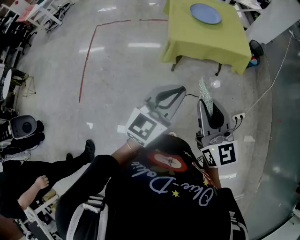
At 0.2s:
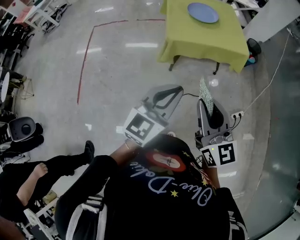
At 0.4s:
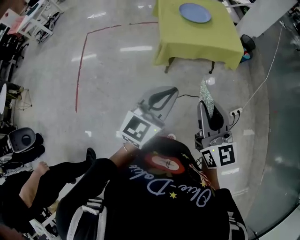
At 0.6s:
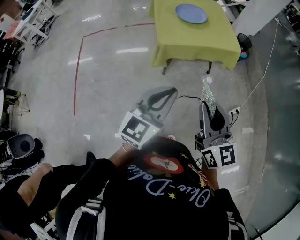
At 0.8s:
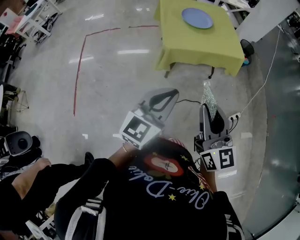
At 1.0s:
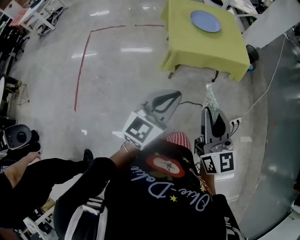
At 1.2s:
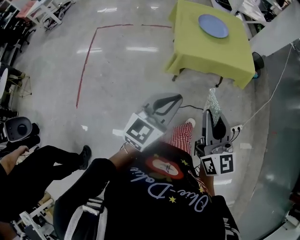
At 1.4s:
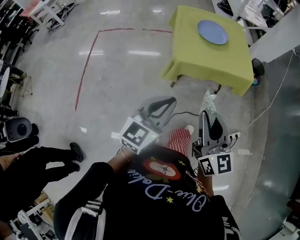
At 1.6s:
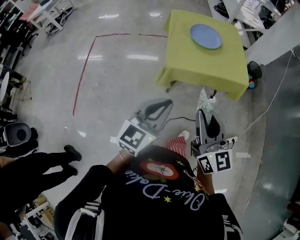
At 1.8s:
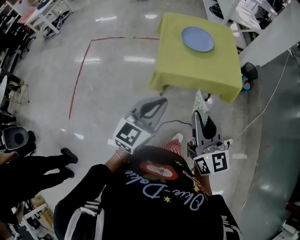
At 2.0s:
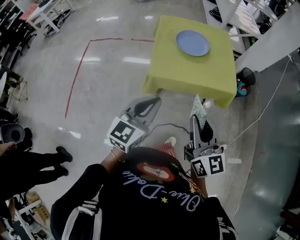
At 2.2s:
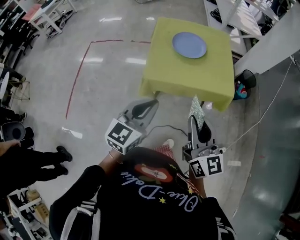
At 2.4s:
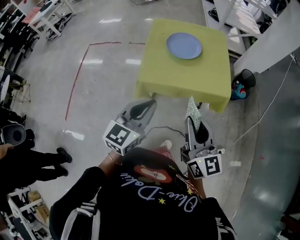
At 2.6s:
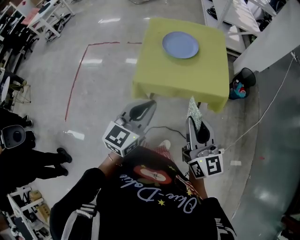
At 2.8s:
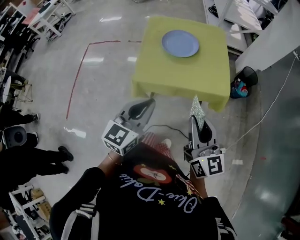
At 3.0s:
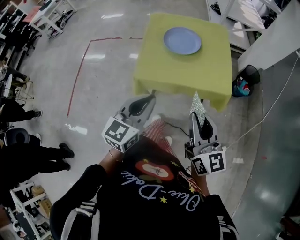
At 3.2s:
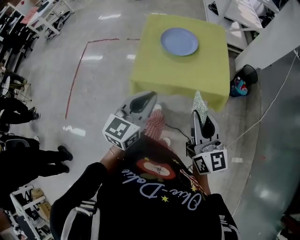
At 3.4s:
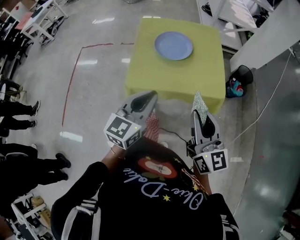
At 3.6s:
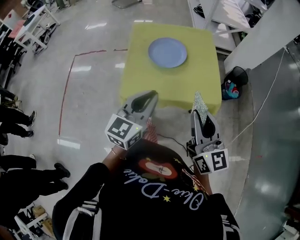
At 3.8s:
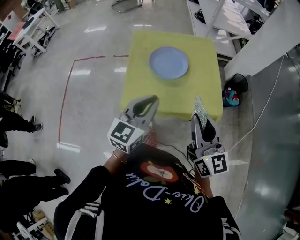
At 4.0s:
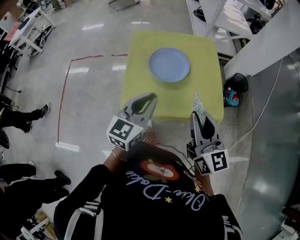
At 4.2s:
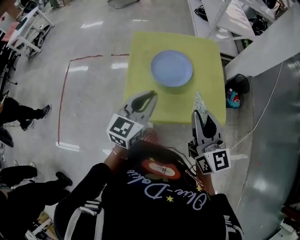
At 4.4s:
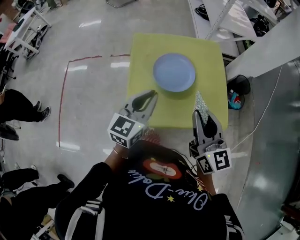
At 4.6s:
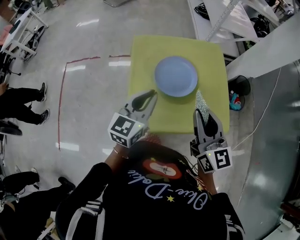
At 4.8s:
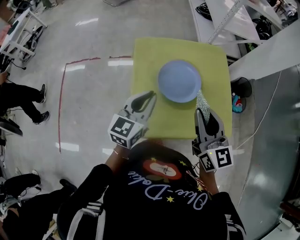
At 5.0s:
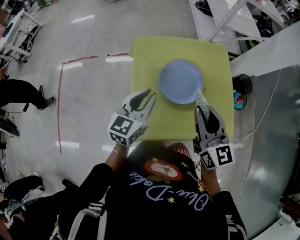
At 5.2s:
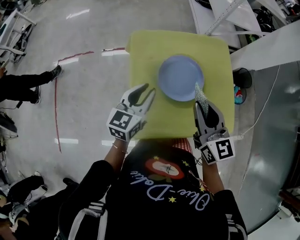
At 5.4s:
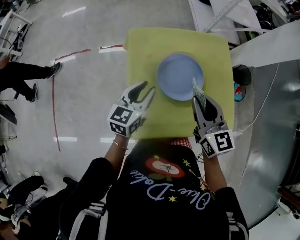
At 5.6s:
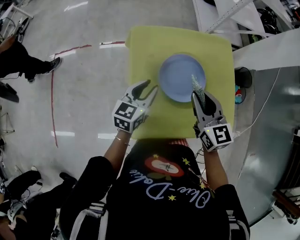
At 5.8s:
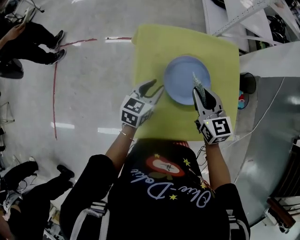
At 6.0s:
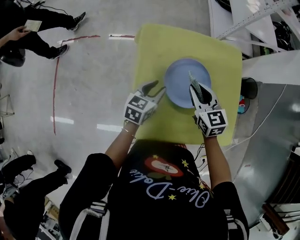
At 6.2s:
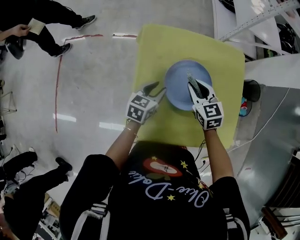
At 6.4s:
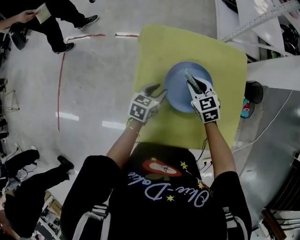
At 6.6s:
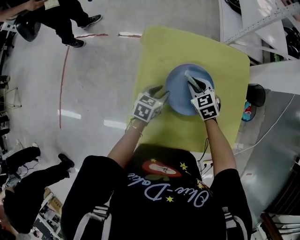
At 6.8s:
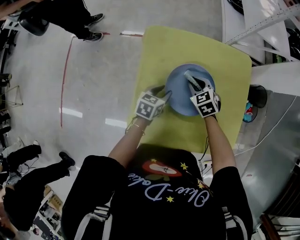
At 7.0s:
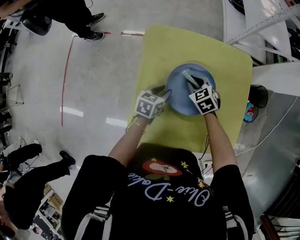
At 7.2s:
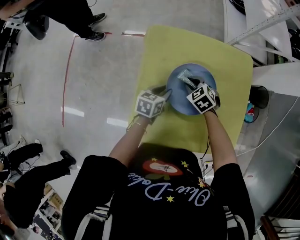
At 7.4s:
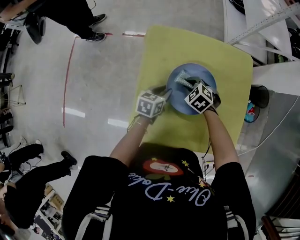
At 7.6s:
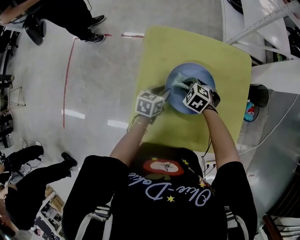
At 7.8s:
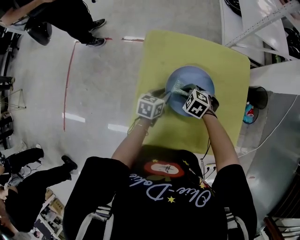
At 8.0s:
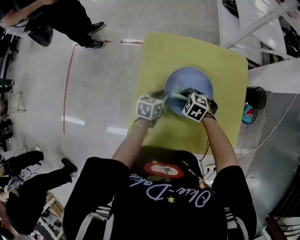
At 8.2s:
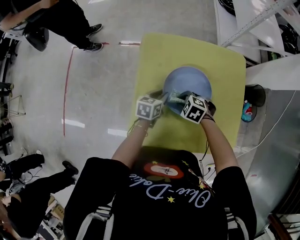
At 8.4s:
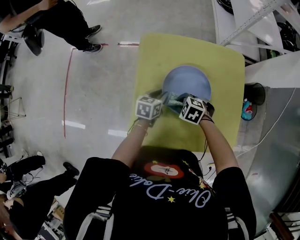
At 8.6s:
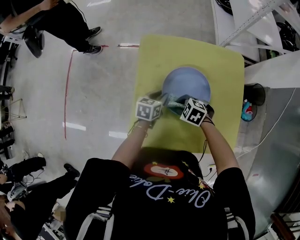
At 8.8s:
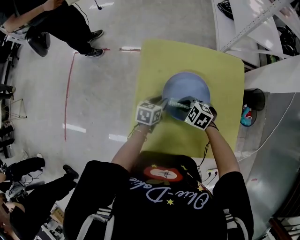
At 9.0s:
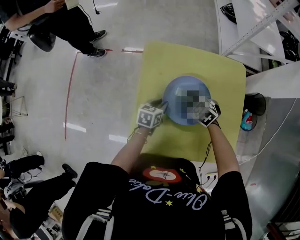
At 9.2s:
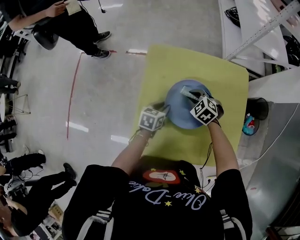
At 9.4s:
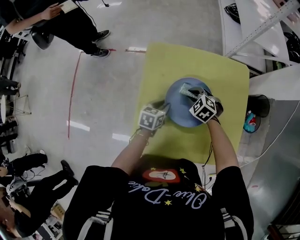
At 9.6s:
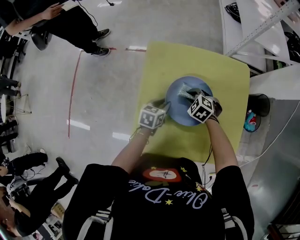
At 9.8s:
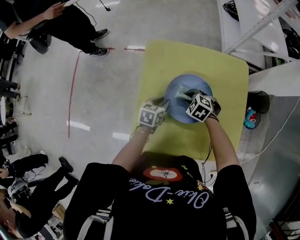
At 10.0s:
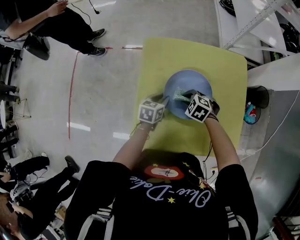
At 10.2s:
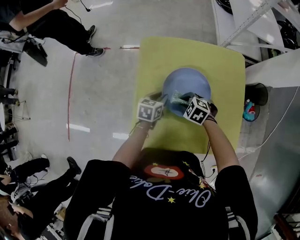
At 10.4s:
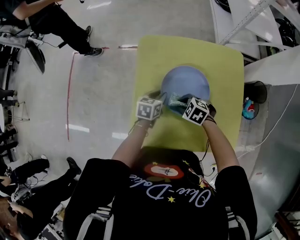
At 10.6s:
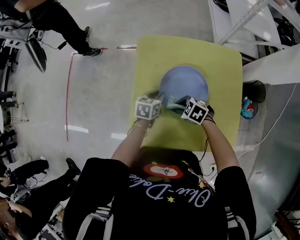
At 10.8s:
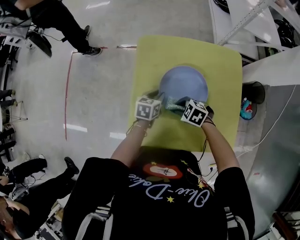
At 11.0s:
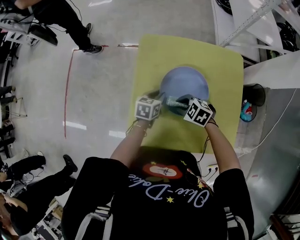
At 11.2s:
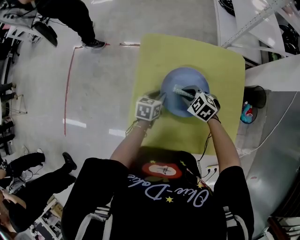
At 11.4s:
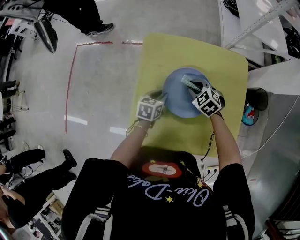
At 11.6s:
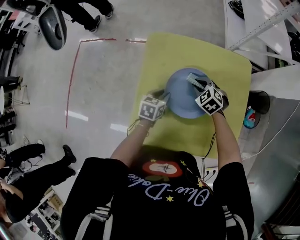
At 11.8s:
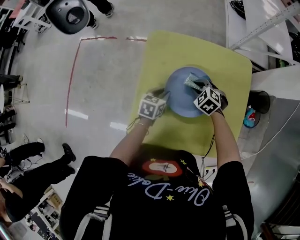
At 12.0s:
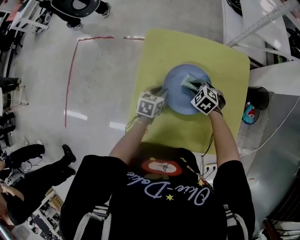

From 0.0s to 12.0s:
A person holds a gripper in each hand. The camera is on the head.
From 0.0s to 1.6s: Both grippers travel together forward, roughly 15 cm.
From 1.6s to 3.0s: Both grippers travel together to the right and forward, about 20 cm.
From 3.0s to 4.4s: The grippers both shift forward by approximately 25 cm.
From 4.4s to 6.0s: The two grippers go about 30 cm forward and downward. The right gripper rotates about 30 degrees. The left gripper swivels about 20 degrees, and opens up.
From 6.0s to 7.6s: The left gripper moves downward, approximately 10 cm, while the right gripper moves downward, about 15 cm, and tips its fingers downward by approximately 40 degrees.
From 9.0s to 10.4s: The right gripper shifts roughly 10 cm backward.
From 10.4s to 12.0s: The right gripper ends up about 10 cm from where it was.

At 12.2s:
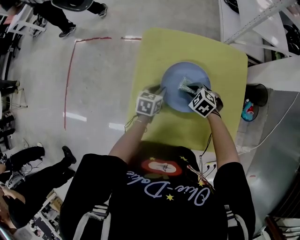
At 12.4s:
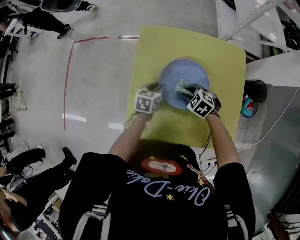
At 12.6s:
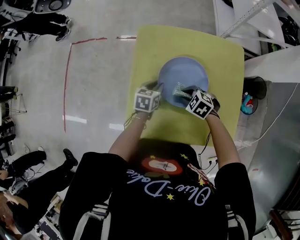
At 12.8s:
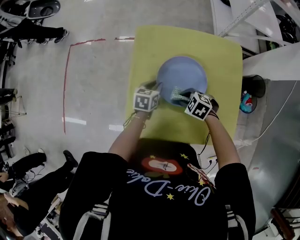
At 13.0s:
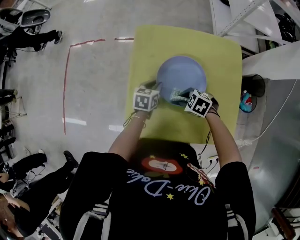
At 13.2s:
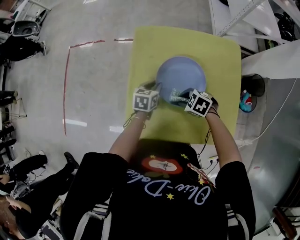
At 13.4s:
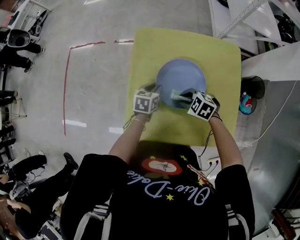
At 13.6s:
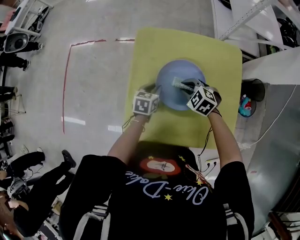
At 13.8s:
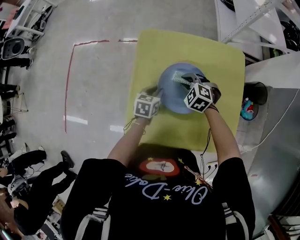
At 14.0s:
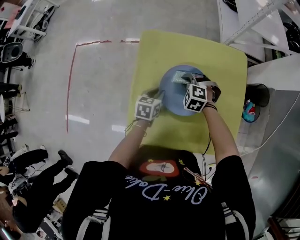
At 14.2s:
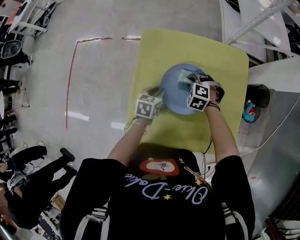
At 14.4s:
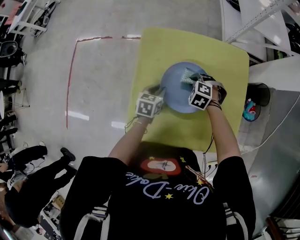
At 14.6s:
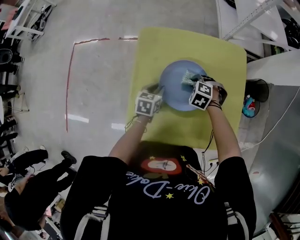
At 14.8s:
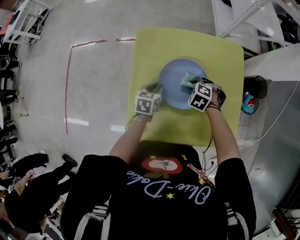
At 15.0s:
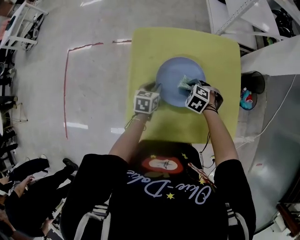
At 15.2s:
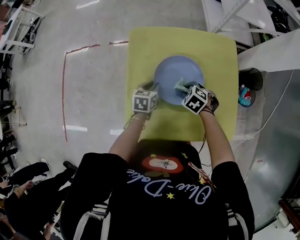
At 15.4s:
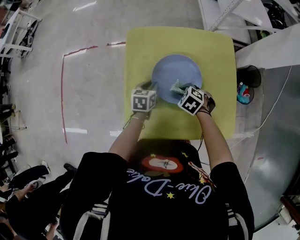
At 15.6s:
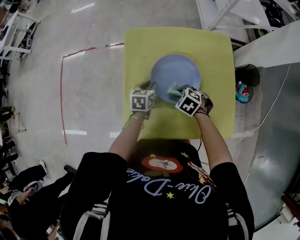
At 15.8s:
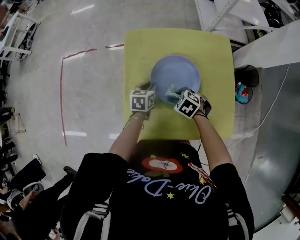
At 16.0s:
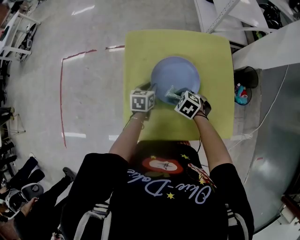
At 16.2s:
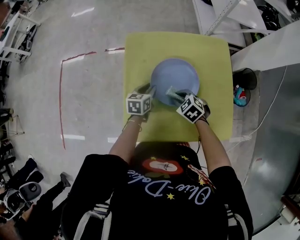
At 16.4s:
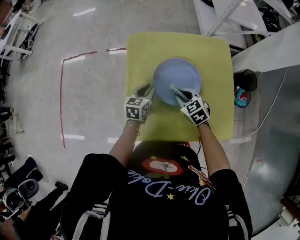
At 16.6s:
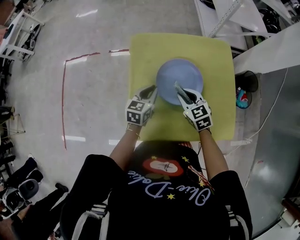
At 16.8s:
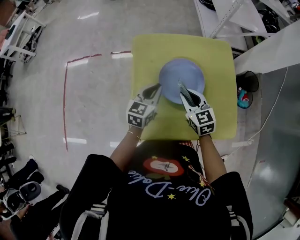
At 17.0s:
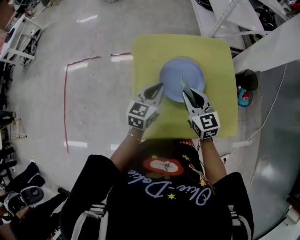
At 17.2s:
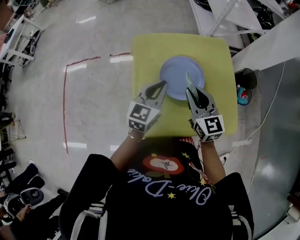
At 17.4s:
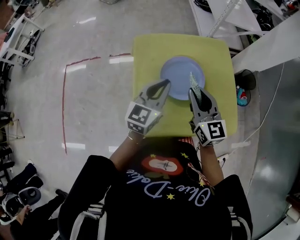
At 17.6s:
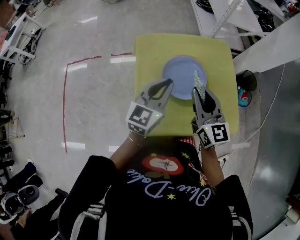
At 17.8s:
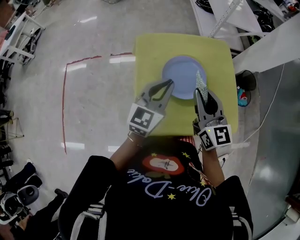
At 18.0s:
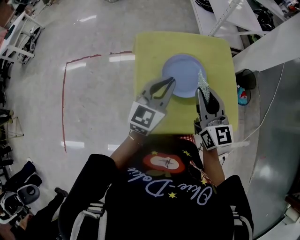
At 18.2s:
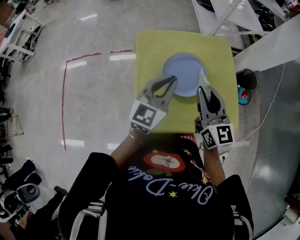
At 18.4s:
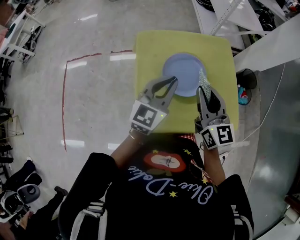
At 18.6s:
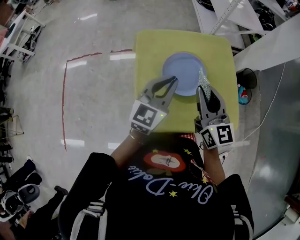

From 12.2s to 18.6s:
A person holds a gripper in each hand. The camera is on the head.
From 12.2s to 13.8s: The right gripper ends up approximately 5 cm from where it was.
From 13.8s to 15.4s: The right gripper shifts by approximately 10 cm, and rotates roughly 30 degrees.
From 15.4s to 17.0s: The grippers both shift upward by roughly 15 cm. The right gripper points its fingers approximately 50 degrees further upward, while the left gripper changes its angle by some 30 degrees.
From 17.0s to 18.6s: Both grippers travel together upward, approximately 10 cm. The right gripper rotates roughly 20 degrees.

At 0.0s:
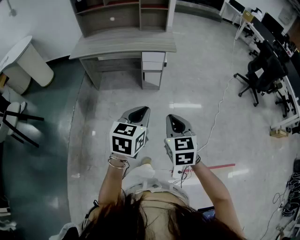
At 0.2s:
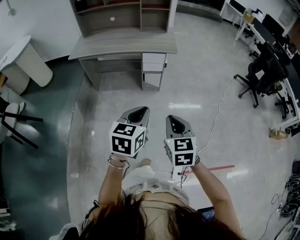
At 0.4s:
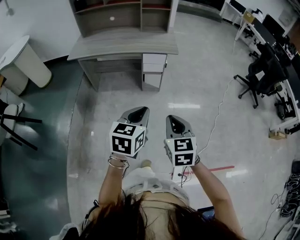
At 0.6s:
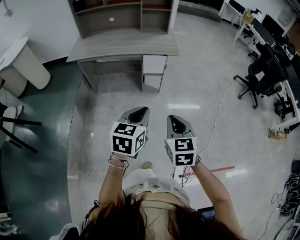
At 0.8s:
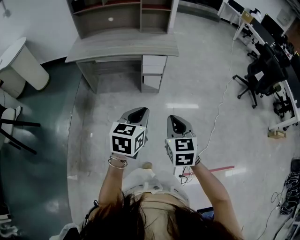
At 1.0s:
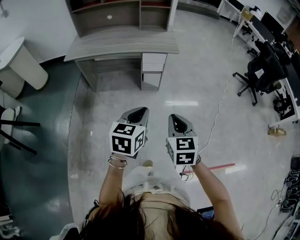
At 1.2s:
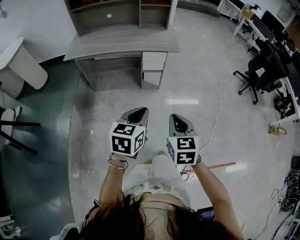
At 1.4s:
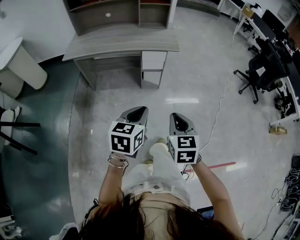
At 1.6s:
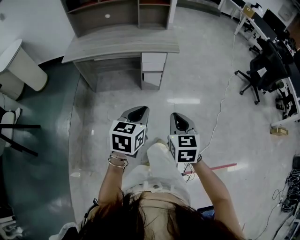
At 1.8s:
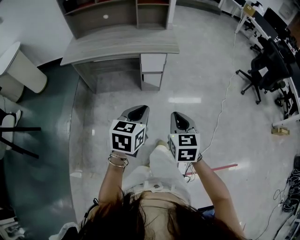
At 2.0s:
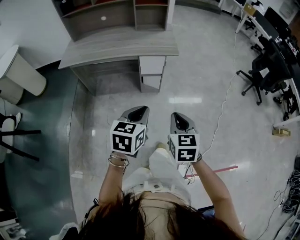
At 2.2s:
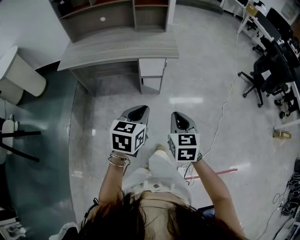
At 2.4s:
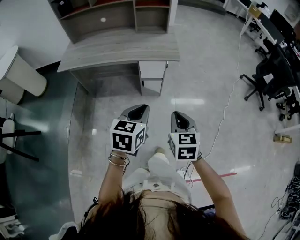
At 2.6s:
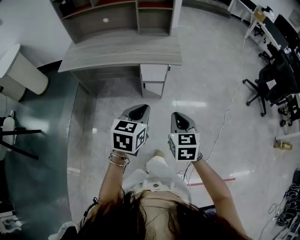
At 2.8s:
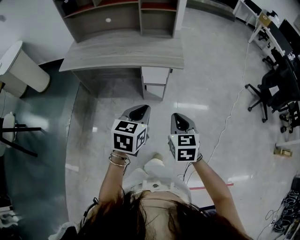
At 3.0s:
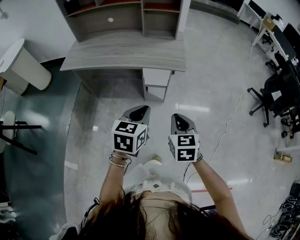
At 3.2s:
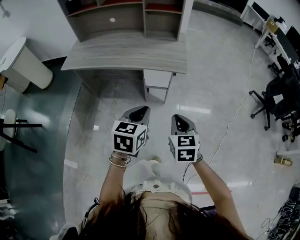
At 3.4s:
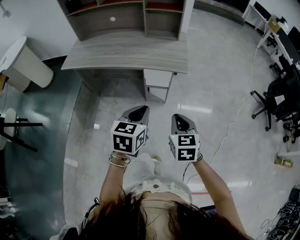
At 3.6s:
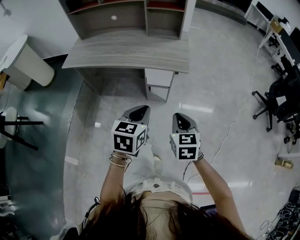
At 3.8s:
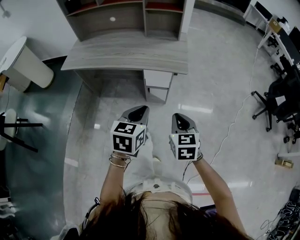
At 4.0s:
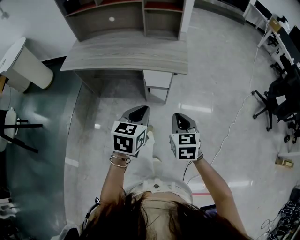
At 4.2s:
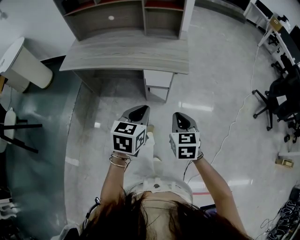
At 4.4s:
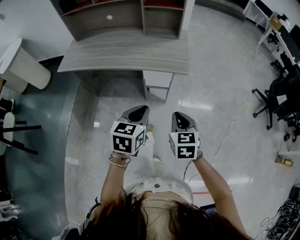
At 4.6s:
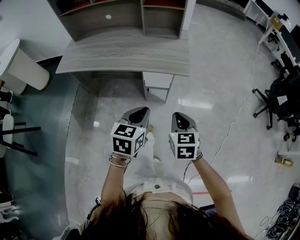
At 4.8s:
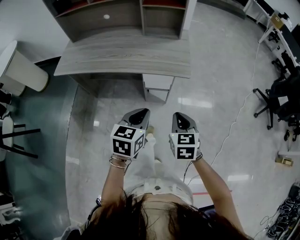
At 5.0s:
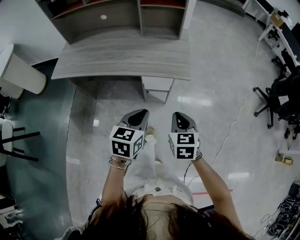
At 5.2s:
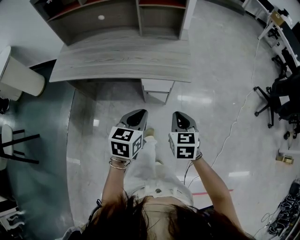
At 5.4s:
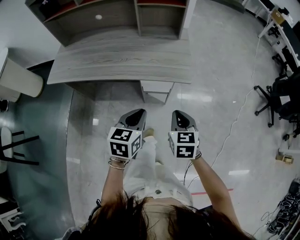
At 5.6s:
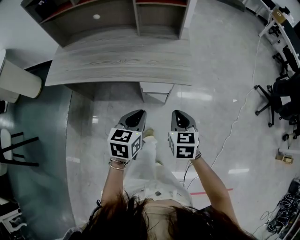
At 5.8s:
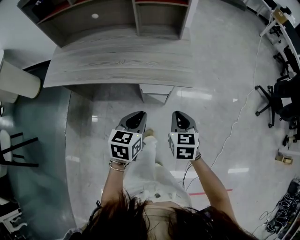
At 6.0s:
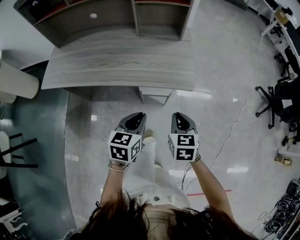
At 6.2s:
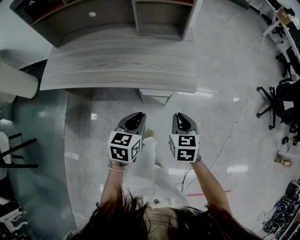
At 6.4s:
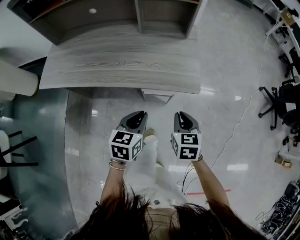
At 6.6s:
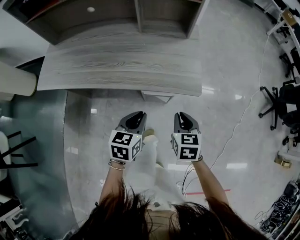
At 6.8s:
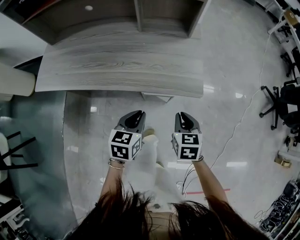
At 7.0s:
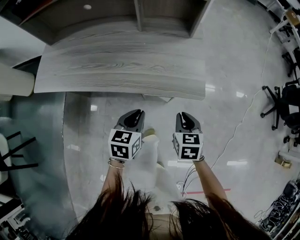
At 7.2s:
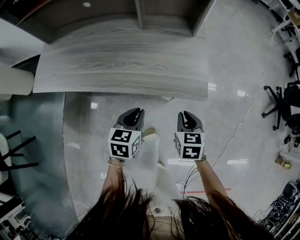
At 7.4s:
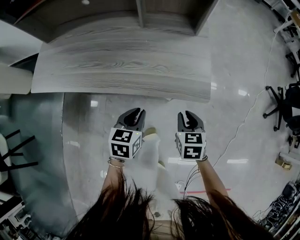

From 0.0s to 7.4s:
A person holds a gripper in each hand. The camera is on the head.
From 0.0s to 1.4s: The right gripper heads forward, covering about 5 cm. The left gripper goes some 10 cm forward and to the left.
From 1.4s to 3.0s: Both grippers move forward, approximately 20 cm.
From 3.0s to 4.4s: The grippers both shift forward by approximately 5 cm.
From 4.4s to 6.0s: The grippers both shift forward and downward by some 15 cm.
From 6.0s to 7.4s: Both grippers move downward and forward, some 10 cm.
